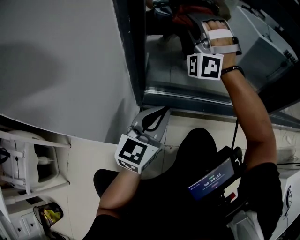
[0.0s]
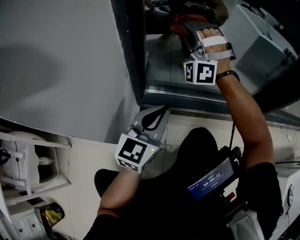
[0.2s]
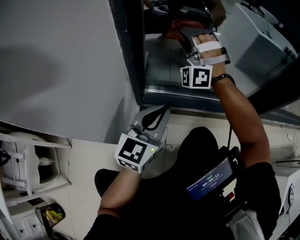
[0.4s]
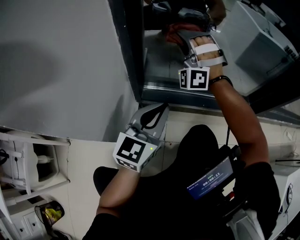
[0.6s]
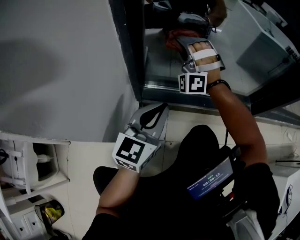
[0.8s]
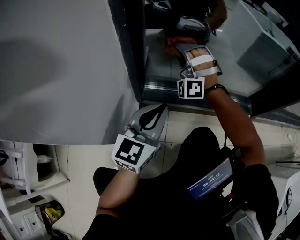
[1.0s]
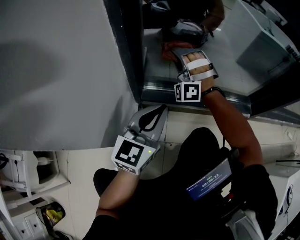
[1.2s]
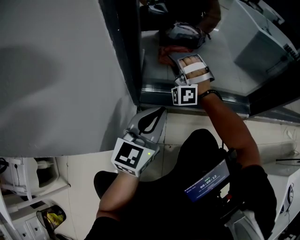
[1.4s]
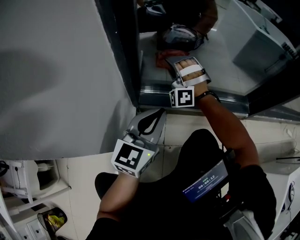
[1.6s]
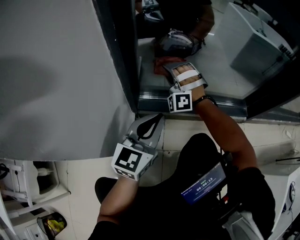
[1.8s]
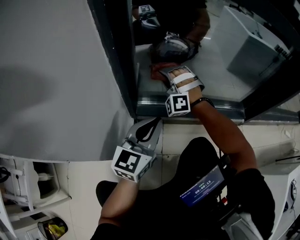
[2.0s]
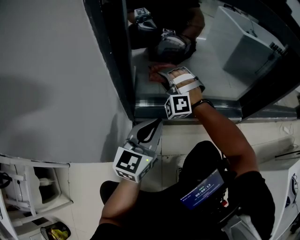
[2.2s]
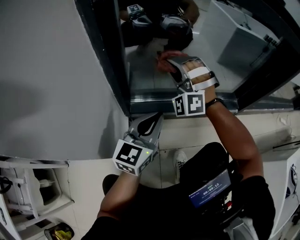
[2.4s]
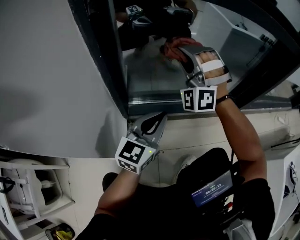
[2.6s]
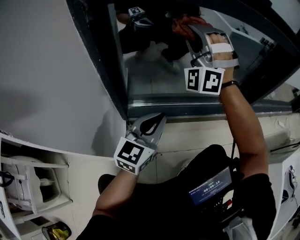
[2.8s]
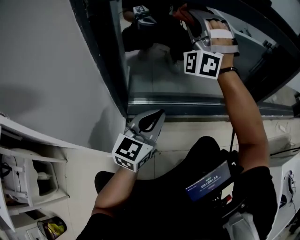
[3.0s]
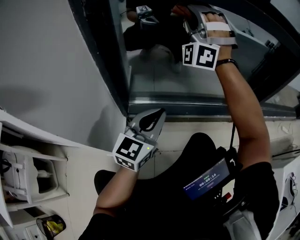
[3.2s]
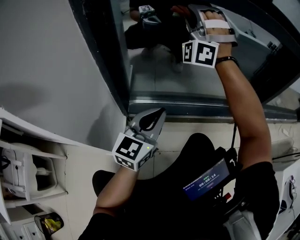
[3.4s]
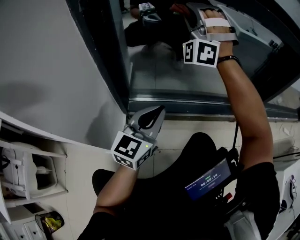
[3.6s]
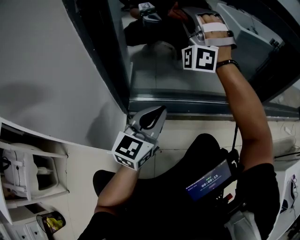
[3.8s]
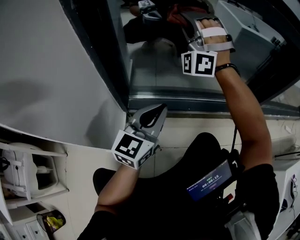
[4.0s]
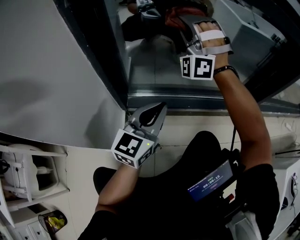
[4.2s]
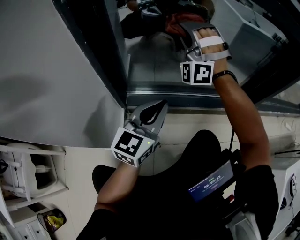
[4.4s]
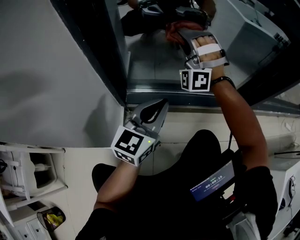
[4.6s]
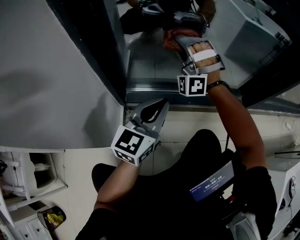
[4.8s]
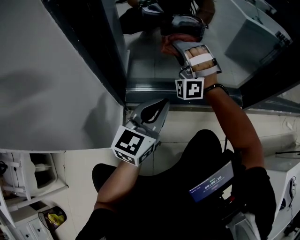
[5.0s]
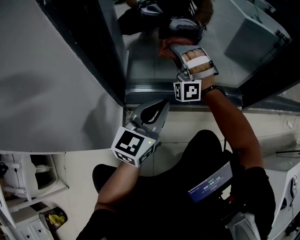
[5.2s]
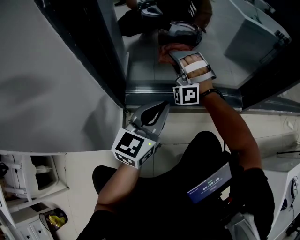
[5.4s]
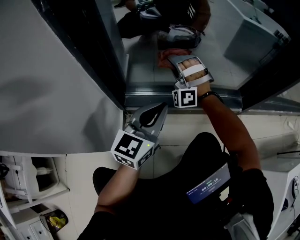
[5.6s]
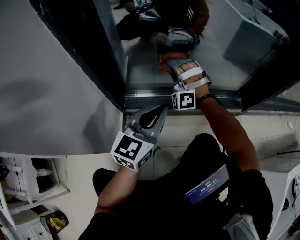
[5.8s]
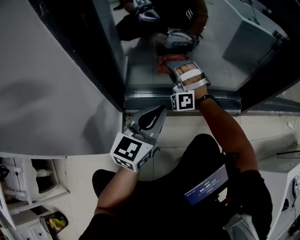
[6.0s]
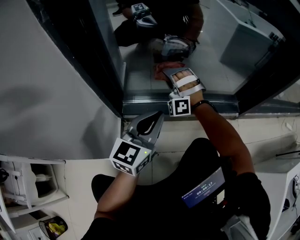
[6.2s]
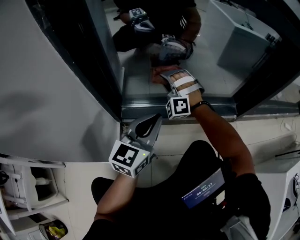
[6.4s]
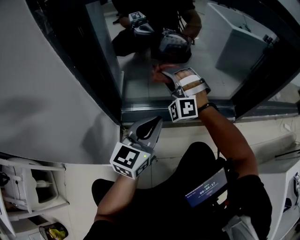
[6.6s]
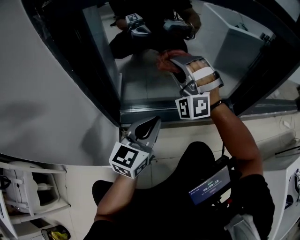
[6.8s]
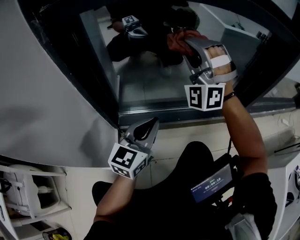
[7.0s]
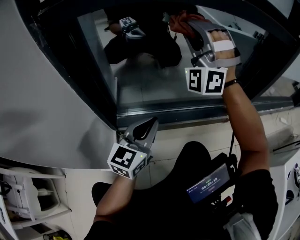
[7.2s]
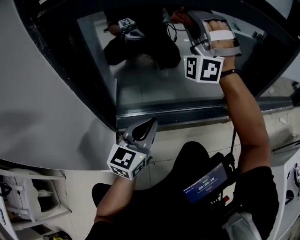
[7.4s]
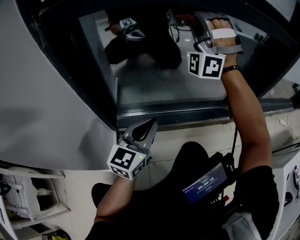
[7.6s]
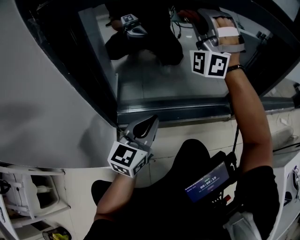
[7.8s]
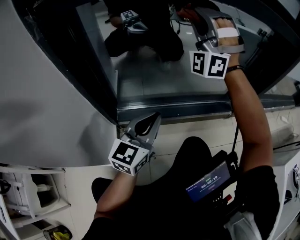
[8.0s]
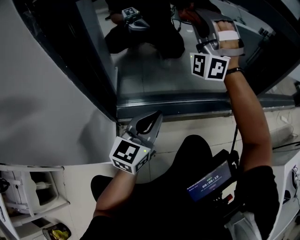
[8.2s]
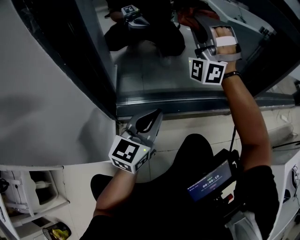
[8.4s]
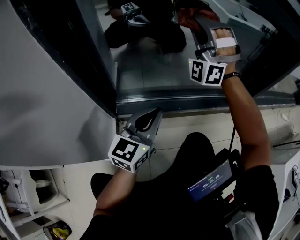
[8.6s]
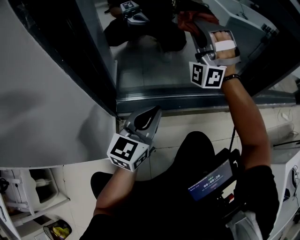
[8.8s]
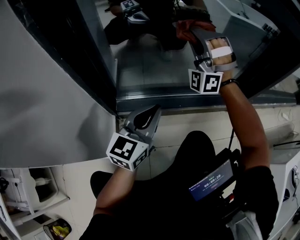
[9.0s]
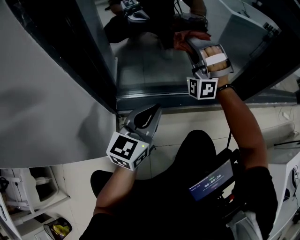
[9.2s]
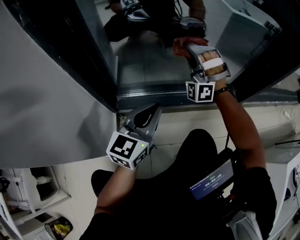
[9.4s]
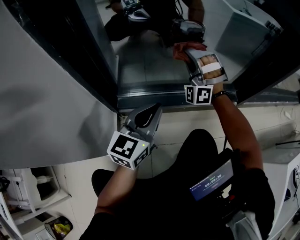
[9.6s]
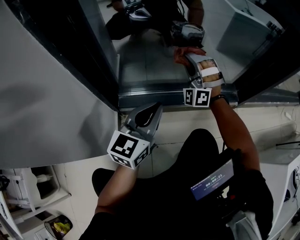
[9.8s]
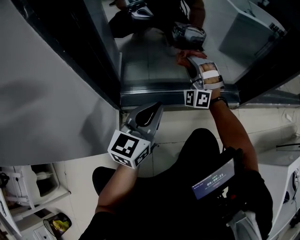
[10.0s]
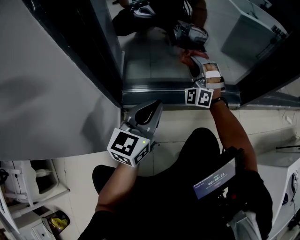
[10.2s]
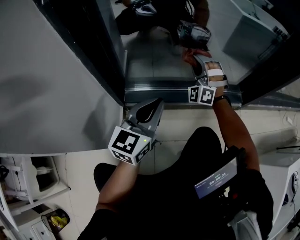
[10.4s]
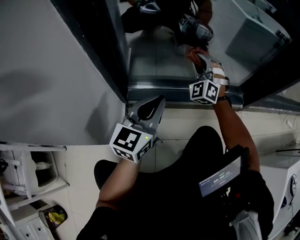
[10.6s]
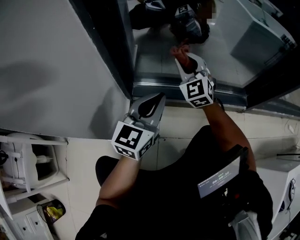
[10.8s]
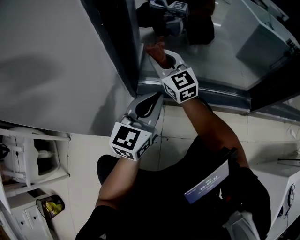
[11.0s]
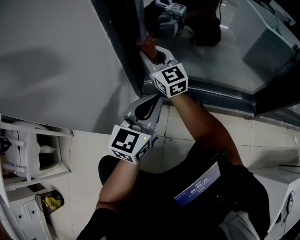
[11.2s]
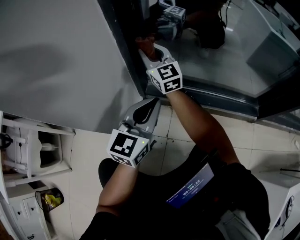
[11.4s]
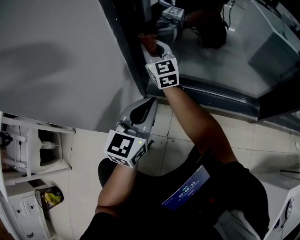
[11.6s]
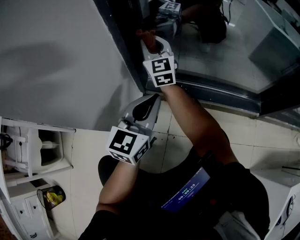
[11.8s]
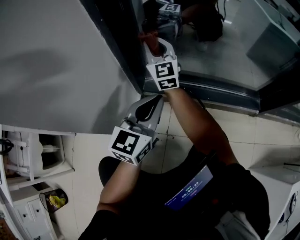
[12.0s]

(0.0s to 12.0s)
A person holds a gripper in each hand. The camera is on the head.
0.0s - 1.6s: The right gripper shifts roughly 20 cm downward.
1.6s - 3.0s: The right gripper is displaced upward and to the right by about 35 cm, and turns by about 30 degrees; the left gripper shifts approximately 10 cm to the right.
3.0s - 4.4s: The right gripper moves downward, roughly 15 cm.
4.4s - 6.0s: The right gripper is displaced downward by roughly 20 cm.
6.0s - 7.6s: The right gripper moves upward, some 35 cm, and angles its fingers upward, by about 30 degrees.
7.6s - 9.0s: The right gripper is displaced downward by roughly 15 cm.
9.0s - 10.4s: The right gripper moves downward, approximately 15 cm, and rotates about 20 degrees.
10.4s - 12.0s: The right gripper moves roughly 25 cm, and rotates around the line of its fingers by about 70 degrees, clockwise from behind, while the left gripper moves some 10 cm.

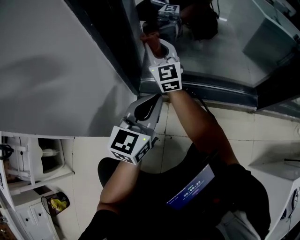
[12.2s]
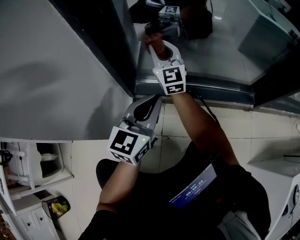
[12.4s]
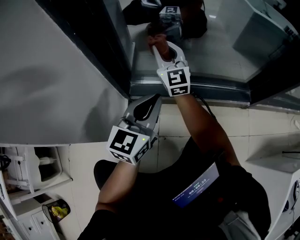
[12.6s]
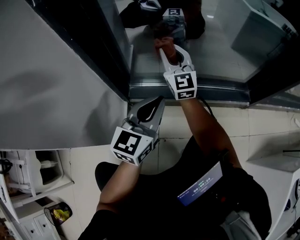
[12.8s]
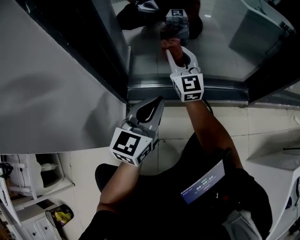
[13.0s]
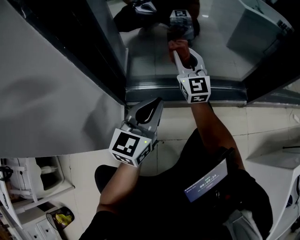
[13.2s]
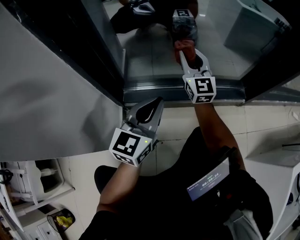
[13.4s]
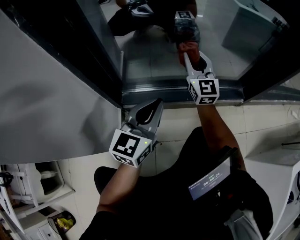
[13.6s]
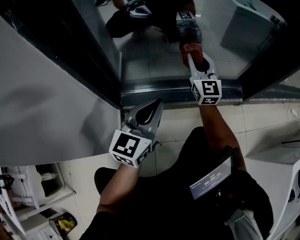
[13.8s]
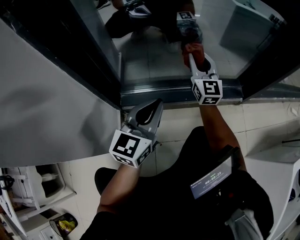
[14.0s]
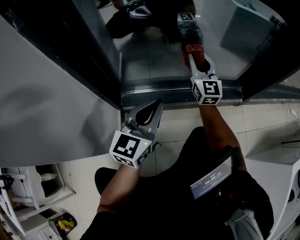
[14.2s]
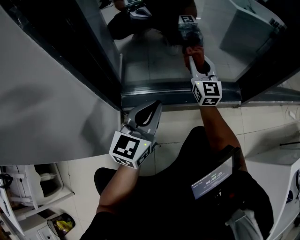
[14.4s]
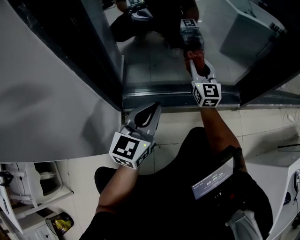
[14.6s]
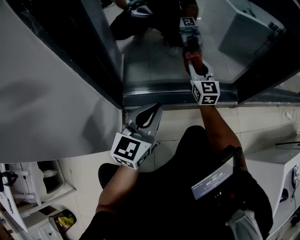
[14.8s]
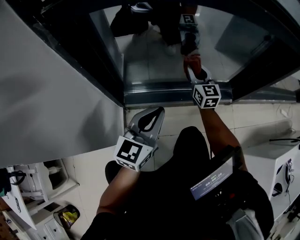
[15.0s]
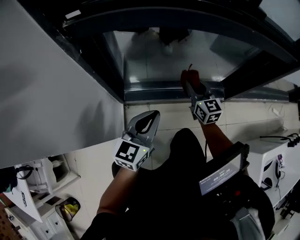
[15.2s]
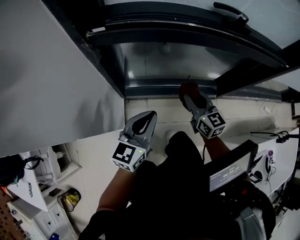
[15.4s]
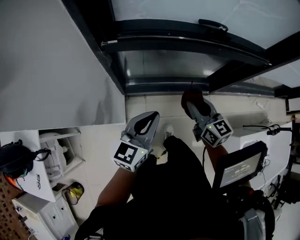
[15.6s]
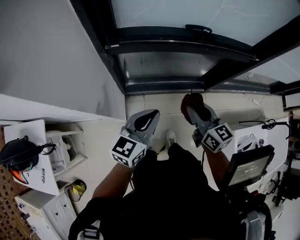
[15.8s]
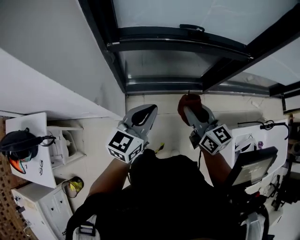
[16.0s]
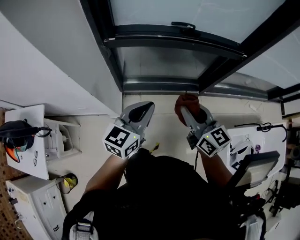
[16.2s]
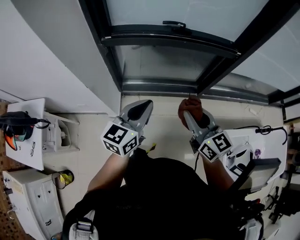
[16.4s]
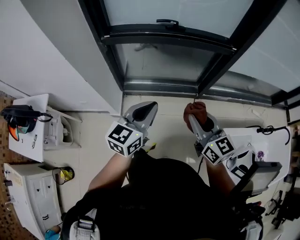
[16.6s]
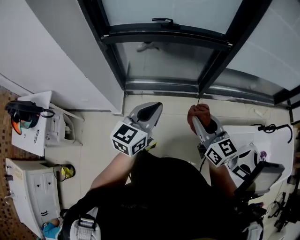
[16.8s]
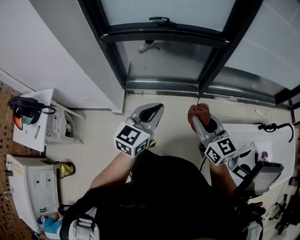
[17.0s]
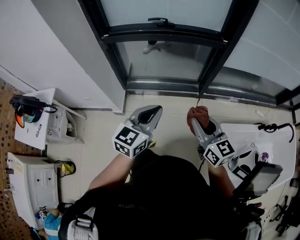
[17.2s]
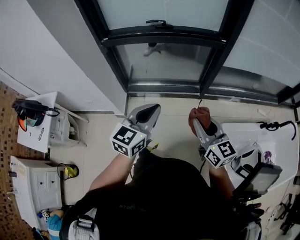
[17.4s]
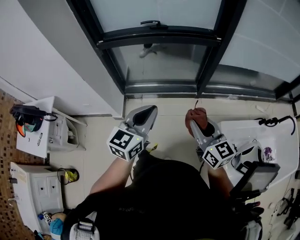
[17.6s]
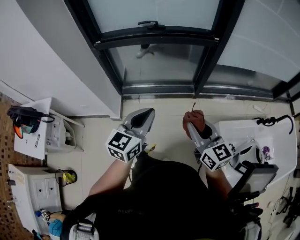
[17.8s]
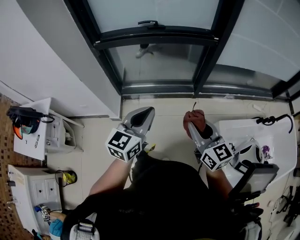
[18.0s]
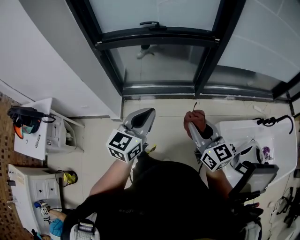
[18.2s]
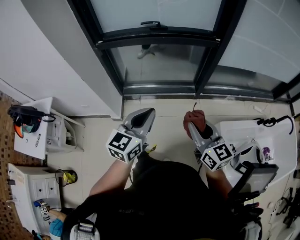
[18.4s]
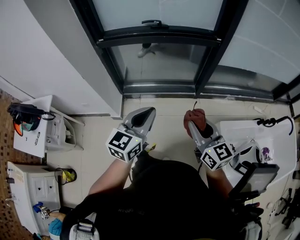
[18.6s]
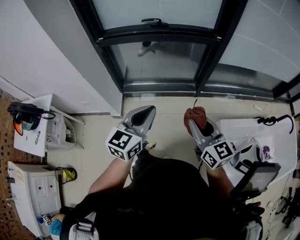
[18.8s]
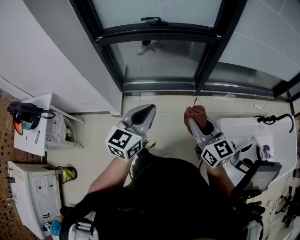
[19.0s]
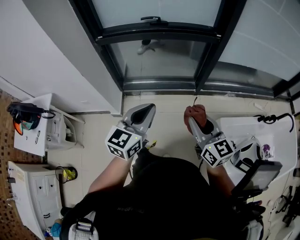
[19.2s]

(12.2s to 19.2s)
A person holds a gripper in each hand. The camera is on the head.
12.2s - 13.6s: The left gripper heads to the right, covering roughly 10 cm, while the right gripper shifts roughly 25 cm to the right.
13.6s - 15.0s: The left gripper moves upward, roughly 10 cm.
15.0s - 16.4s: The two grippers go roughly 60 cm upward and backward. The right gripper rotates roughly 20 degrees.
16.4s - 17.8s: The two grippers go about 20 cm to the right and backward.
17.8s - 19.2s: Both grippers stay put.

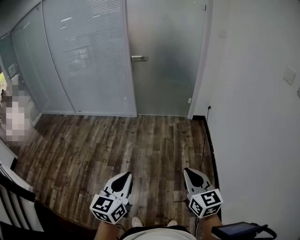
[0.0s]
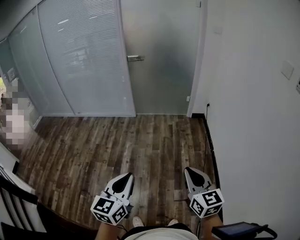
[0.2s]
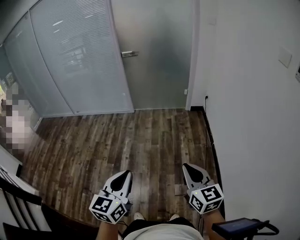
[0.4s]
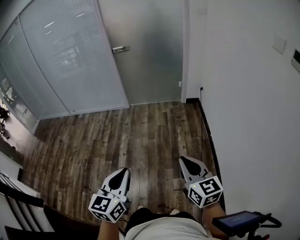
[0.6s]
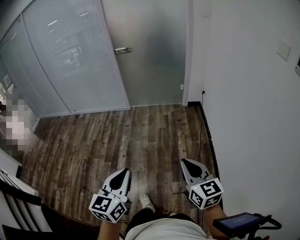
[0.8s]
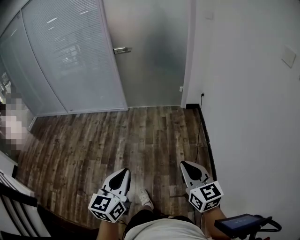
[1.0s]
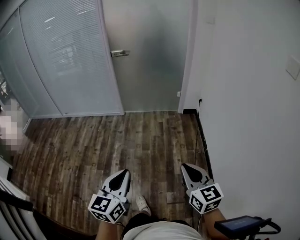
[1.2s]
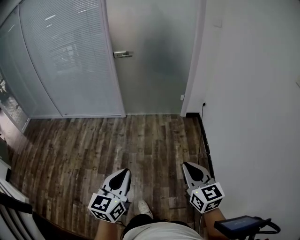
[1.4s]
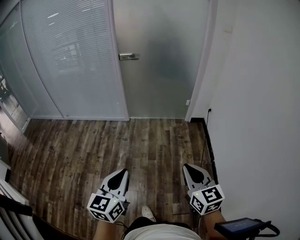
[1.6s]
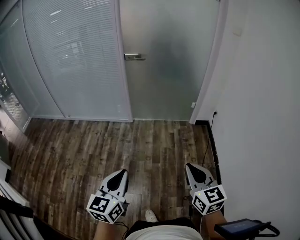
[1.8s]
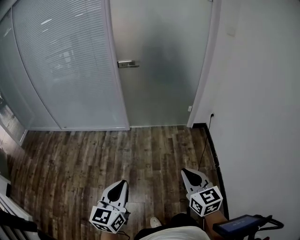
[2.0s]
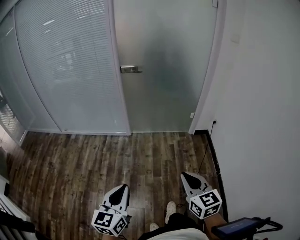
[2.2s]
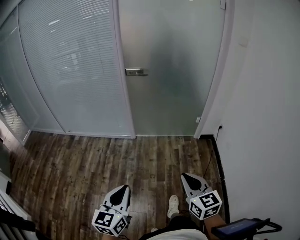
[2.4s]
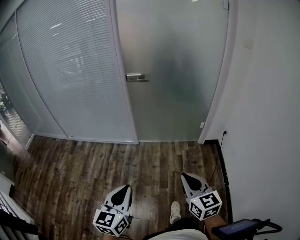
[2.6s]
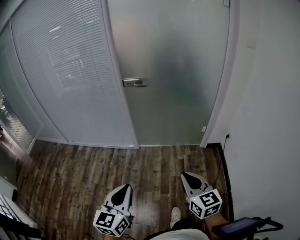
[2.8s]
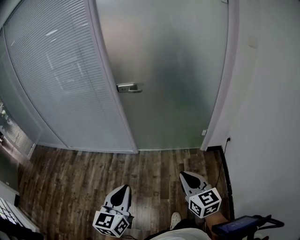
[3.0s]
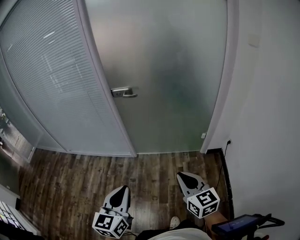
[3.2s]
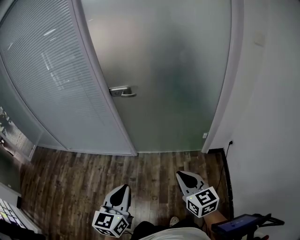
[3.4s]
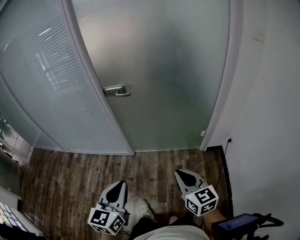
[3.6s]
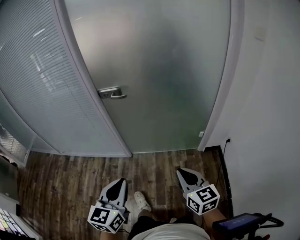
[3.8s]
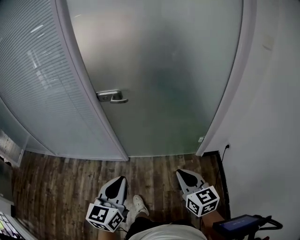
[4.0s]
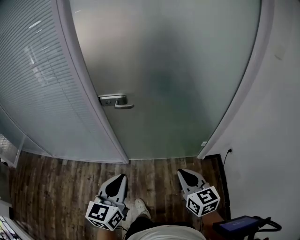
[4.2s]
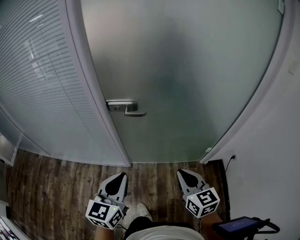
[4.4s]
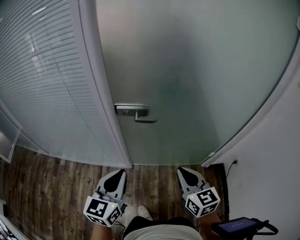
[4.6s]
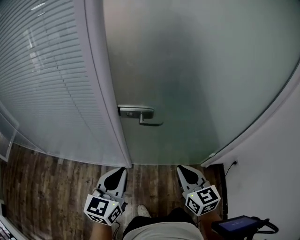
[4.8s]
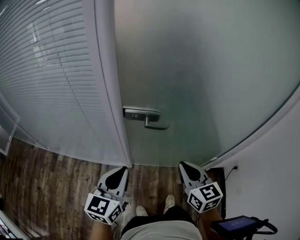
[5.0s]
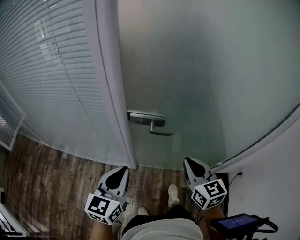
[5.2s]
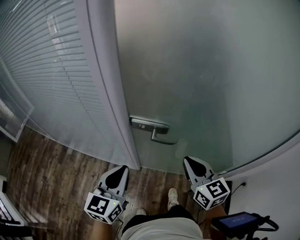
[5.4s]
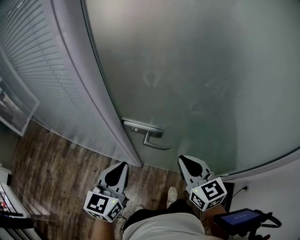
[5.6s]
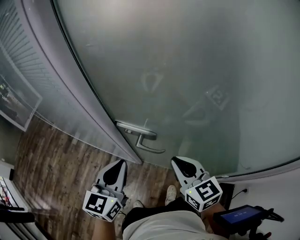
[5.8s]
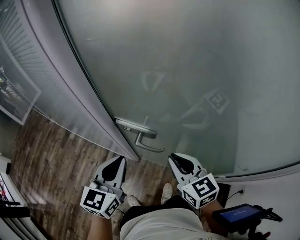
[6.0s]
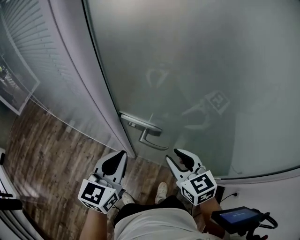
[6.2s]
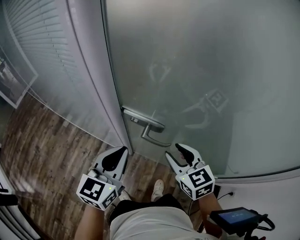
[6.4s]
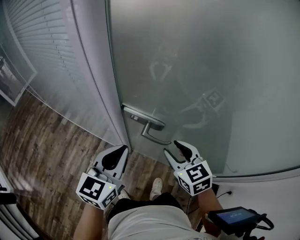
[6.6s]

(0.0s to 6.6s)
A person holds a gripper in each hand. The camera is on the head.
0.0s - 1.6s: Both grippers move forward, approximately 25 cm.
1.6s - 3.2s: Both grippers travel together forward, some 40 cm.
3.2s - 5.0s: The two grippers travel together, forward, approximately 50 cm.
5.0s - 6.6s: The right gripper is displaced forward by some 20 cm, turns by roughly 30 degrees, and opens its fingers; the left gripper goes approximately 15 cm forward and to the right.
